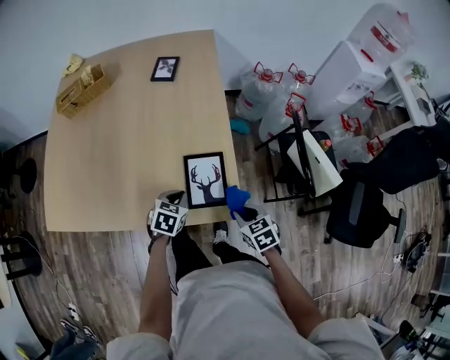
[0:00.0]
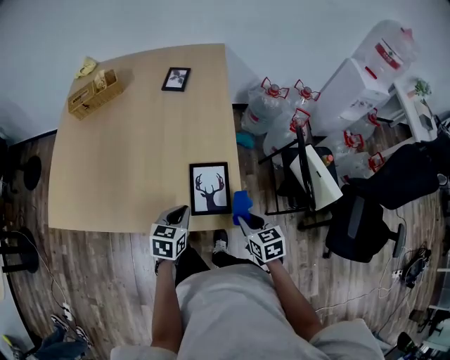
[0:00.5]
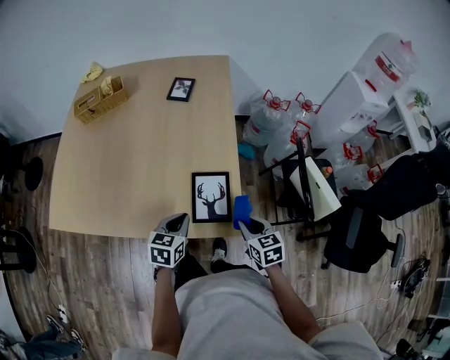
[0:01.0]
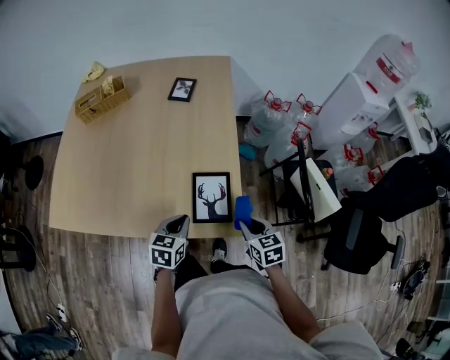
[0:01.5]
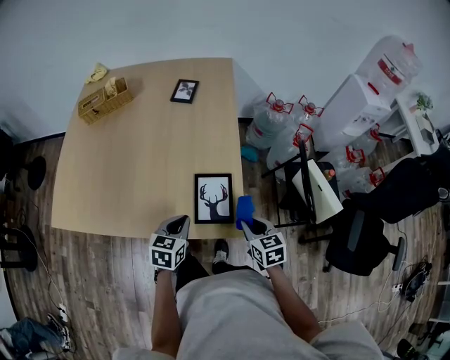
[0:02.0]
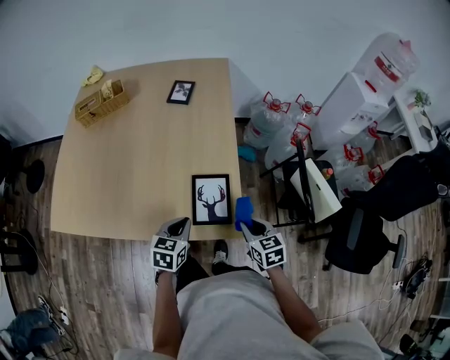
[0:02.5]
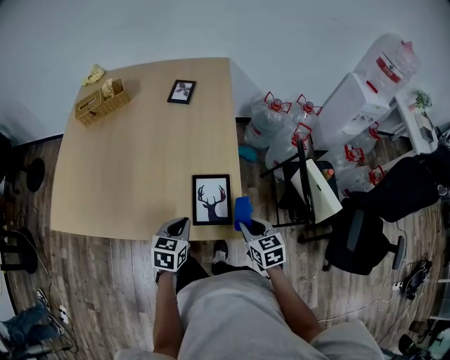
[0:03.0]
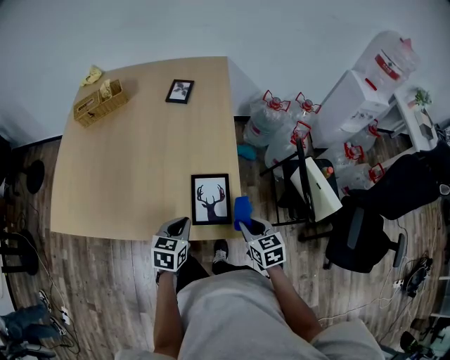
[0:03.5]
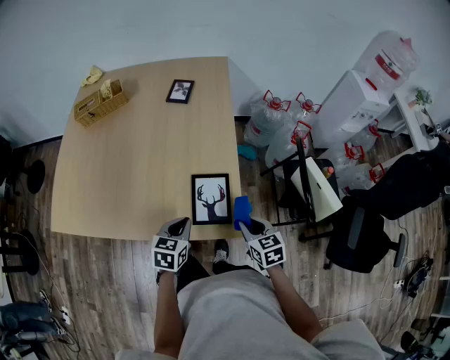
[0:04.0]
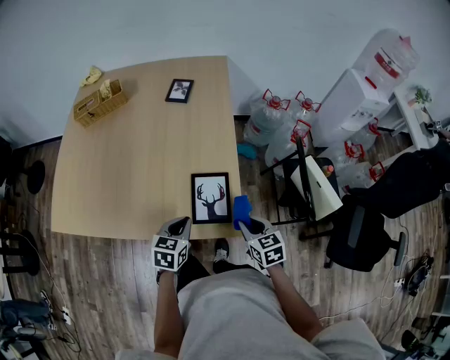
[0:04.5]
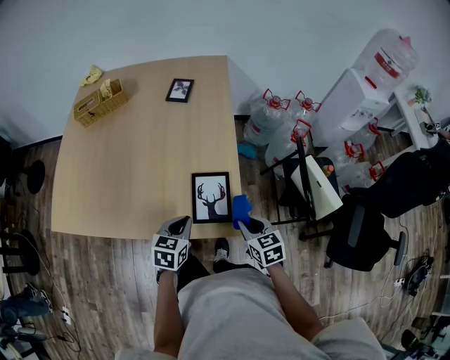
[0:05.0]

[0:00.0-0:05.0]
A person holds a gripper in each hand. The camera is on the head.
0:00.0 to 0:02.5: Both grippers move upward, some 5 cm.
0:02.5 to 0:05.0: The two grippers keep their place.

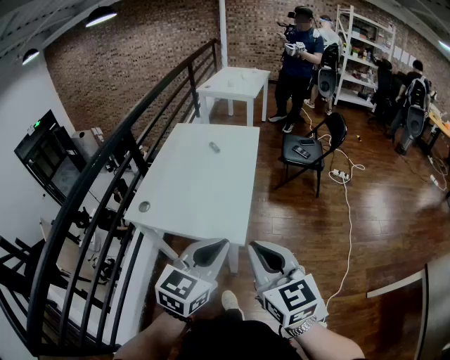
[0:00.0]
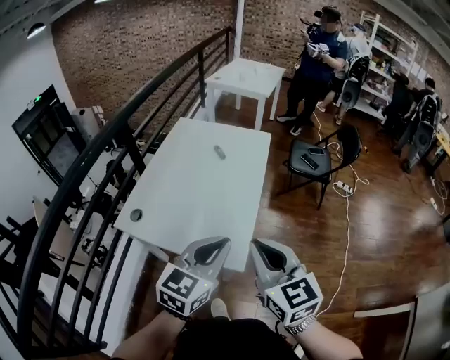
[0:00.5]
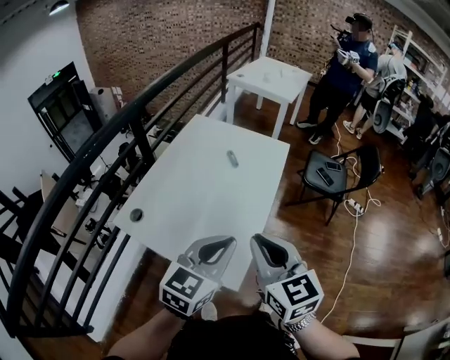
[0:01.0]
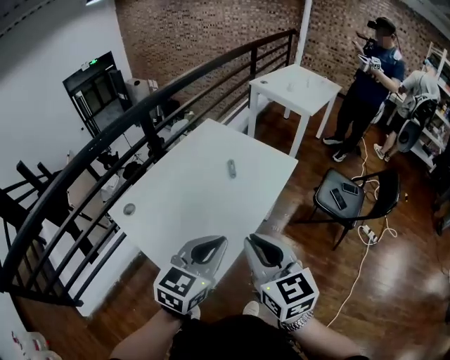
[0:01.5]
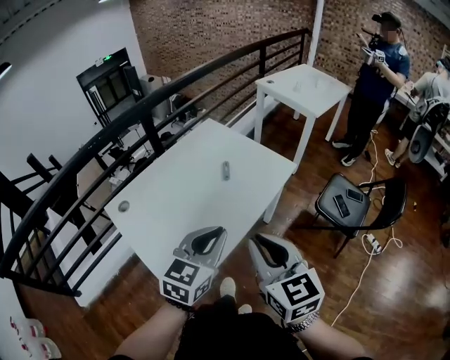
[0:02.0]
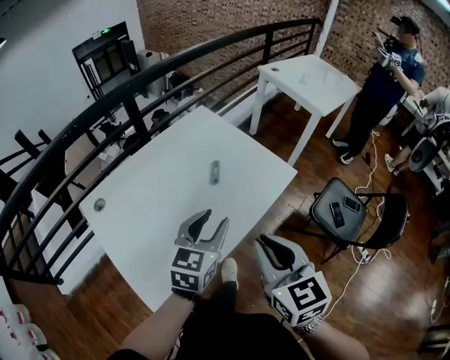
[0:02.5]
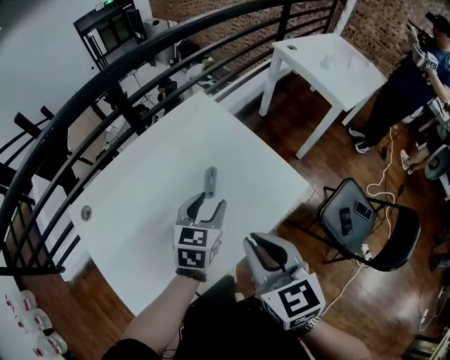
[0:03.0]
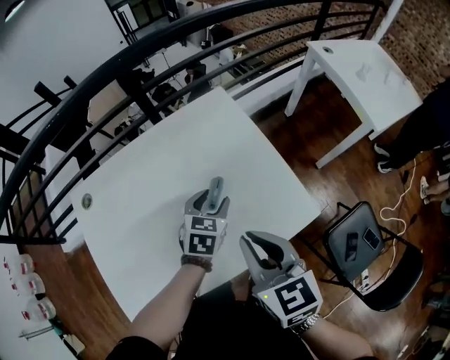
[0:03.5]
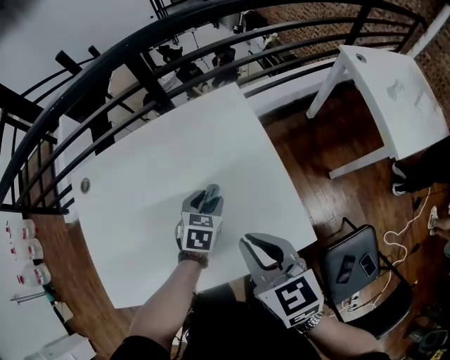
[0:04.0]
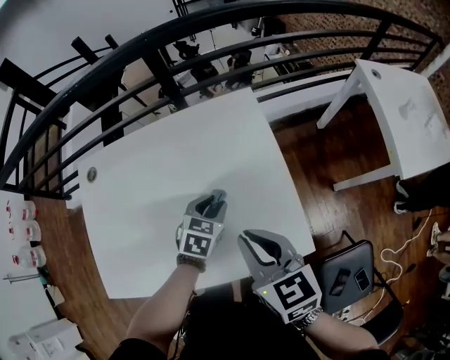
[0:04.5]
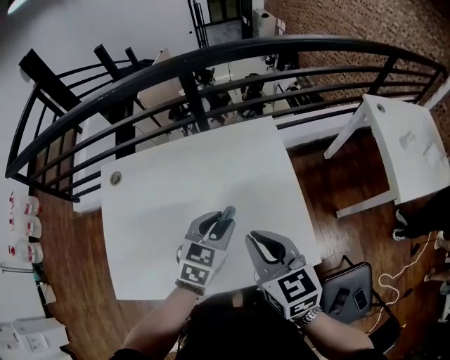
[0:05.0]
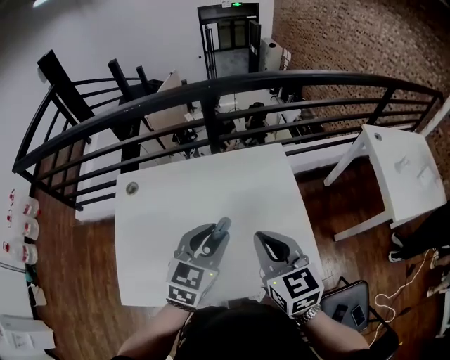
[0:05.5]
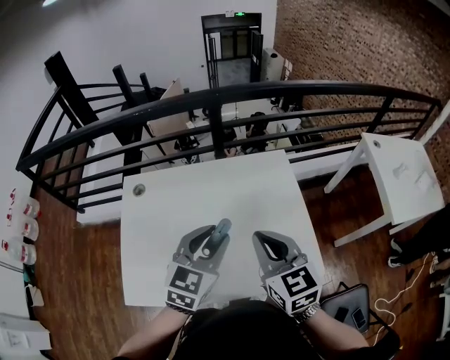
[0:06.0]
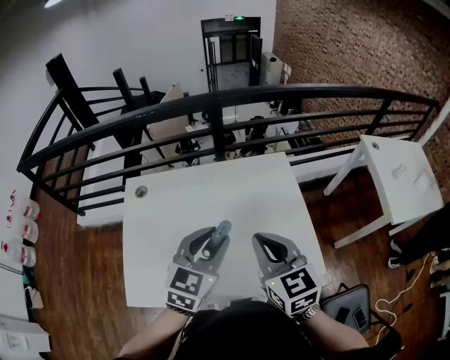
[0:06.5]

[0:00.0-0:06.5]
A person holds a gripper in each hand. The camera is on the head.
0:00.0 to 0:02.0: The right gripper shifts by approximately 40 cm, and turns by approximately 30 degrees. The left gripper shifts by some 40 cm, and turns by approximately 30 degrees.
0:02.0 to 0:04.5: The left gripper shifts by about 50 cm, tilts its fingers some 30 degrees downward, and opens. The right gripper moves some 40 cm, and rotates about 50 degrees.
0:04.5 to 0:06.5: The left gripper shifts some 25 cm upward and to the left, and changes its angle by approximately 30 degrees, while the right gripper shifts about 15 cm to the left and upward.

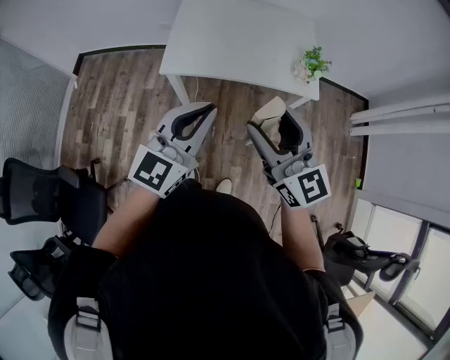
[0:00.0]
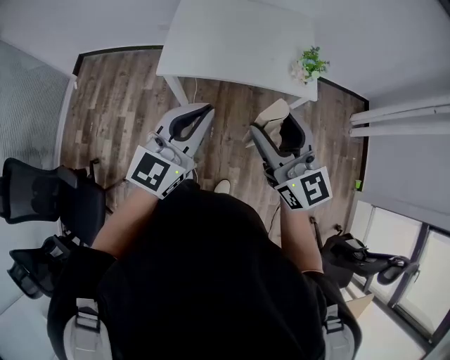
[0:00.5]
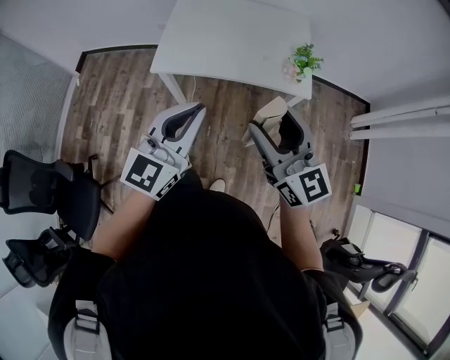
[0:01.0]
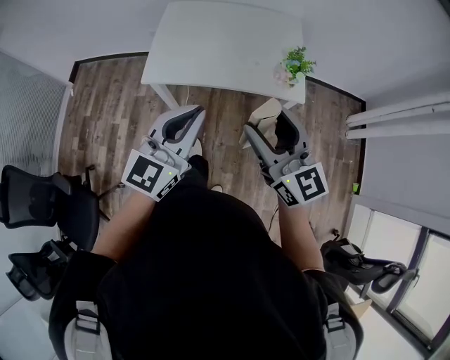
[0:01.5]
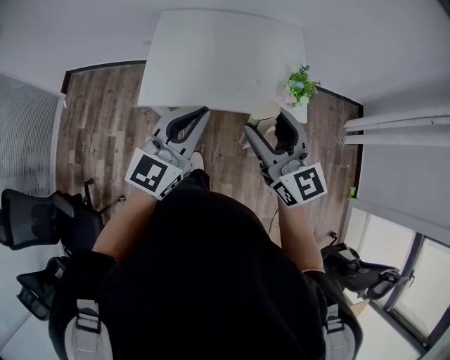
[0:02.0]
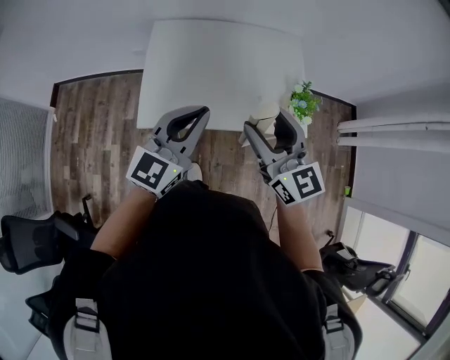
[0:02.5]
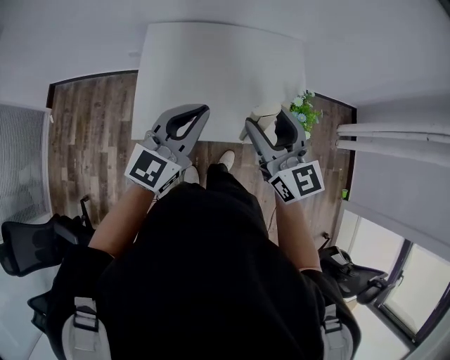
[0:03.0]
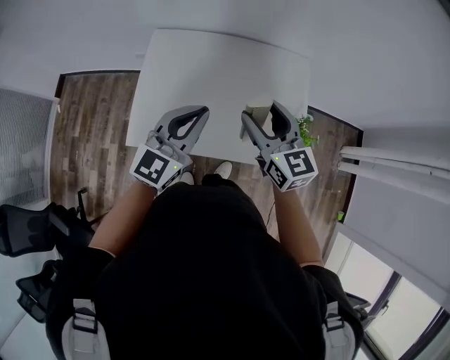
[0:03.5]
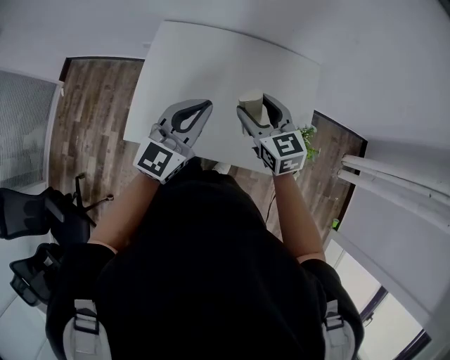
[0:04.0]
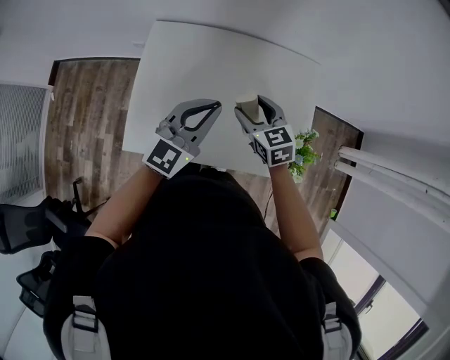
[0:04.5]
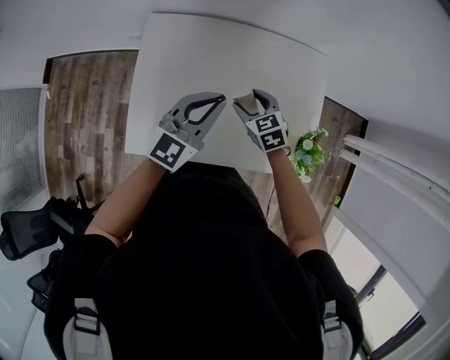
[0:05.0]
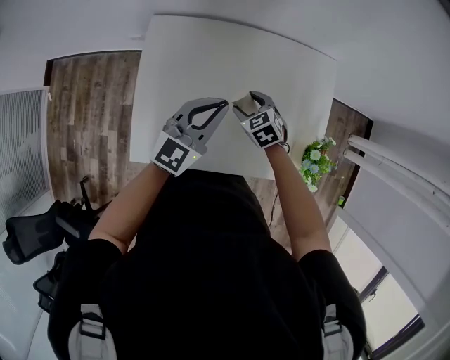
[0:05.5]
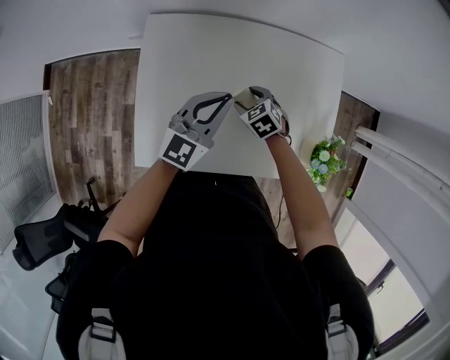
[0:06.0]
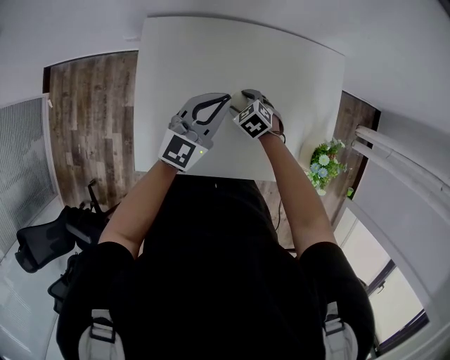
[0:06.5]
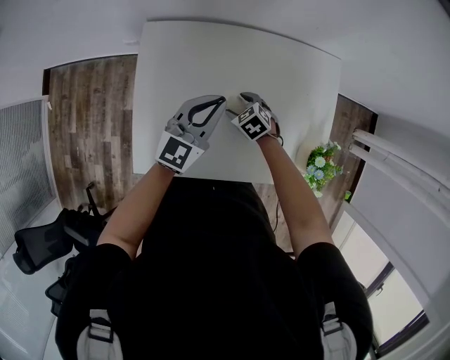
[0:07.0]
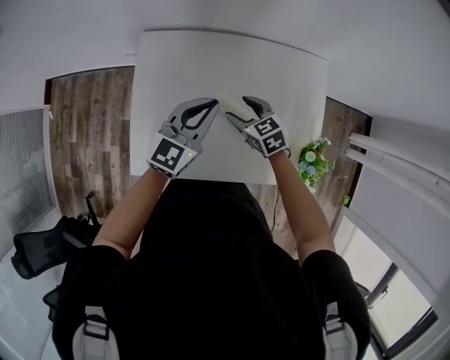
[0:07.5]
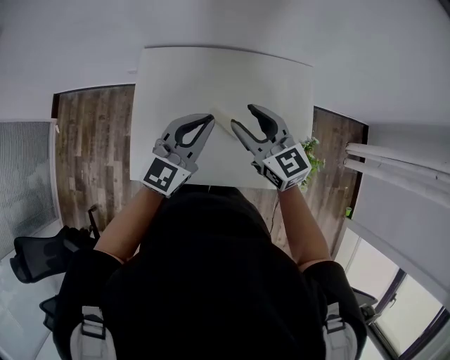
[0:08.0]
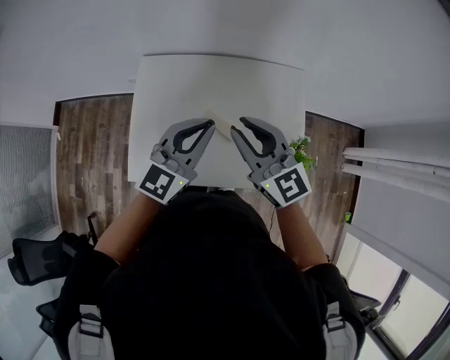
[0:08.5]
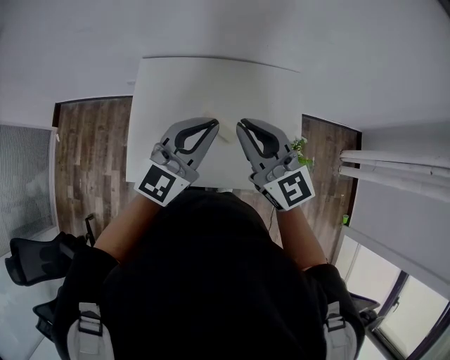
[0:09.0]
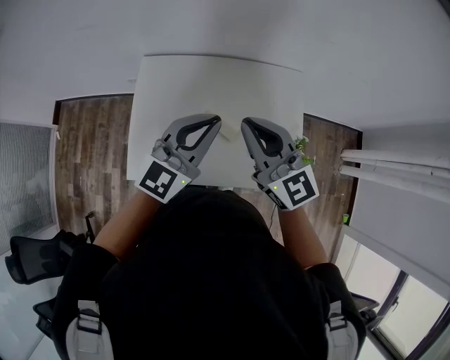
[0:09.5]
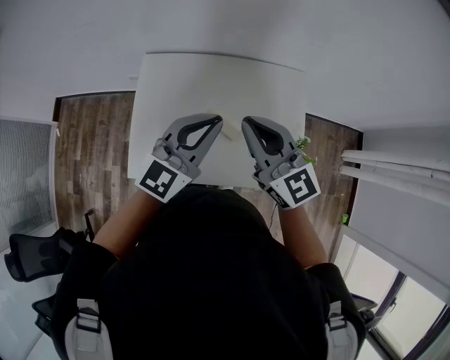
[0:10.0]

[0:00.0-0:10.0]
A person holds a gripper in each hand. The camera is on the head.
0:00.0 to 0:02.0: Both grippers travel together forward, approximately 15 cm.
0:02.0 to 0:04.0: The right gripper shifts roughly 35 cm forward and downward, and turns by about 30 degrees. Meanwhile the left gripper heads forward, covering approximately 30 cm.
0:04.0 to 0:06.0: The left gripper shifts some 20 cm forward and downward, while the right gripper moves downward and forward, some 30 cm, and tilts its fingers some 40 degrees downward.
0:06.0 to 0:08.0: The right gripper travels upward by about 30 cm, and points its fingers about 40 degrees further upward, while the left gripper is displaced upward and backward by some 15 cm.
0:08.0 to 0:10.0: The right gripper heads upward and backward, covering about 15 cm, and closes up; the left gripper moves upward, some 5 cm.

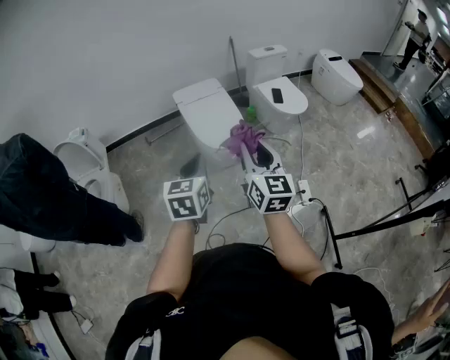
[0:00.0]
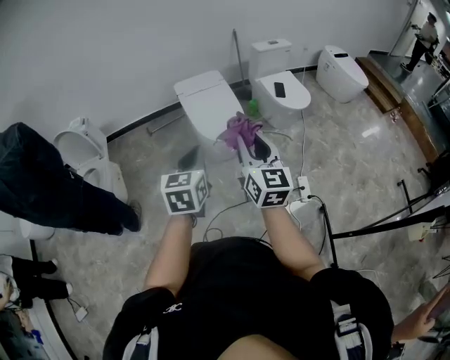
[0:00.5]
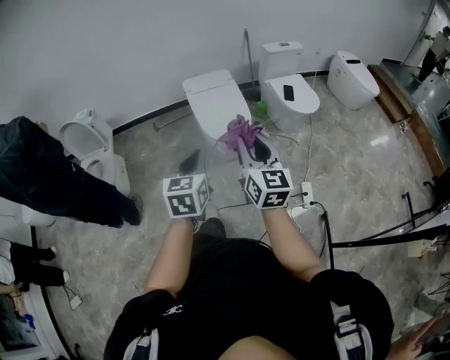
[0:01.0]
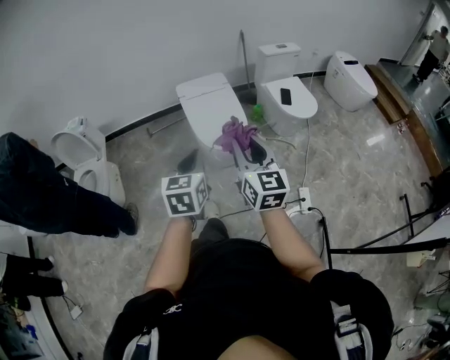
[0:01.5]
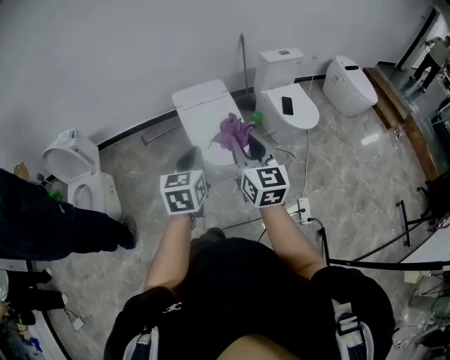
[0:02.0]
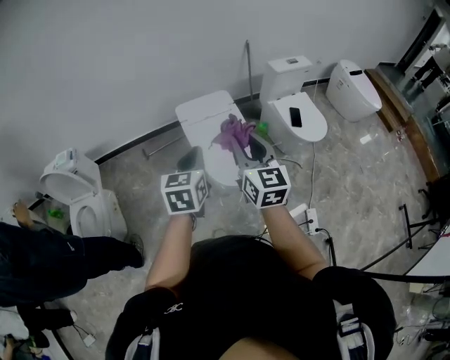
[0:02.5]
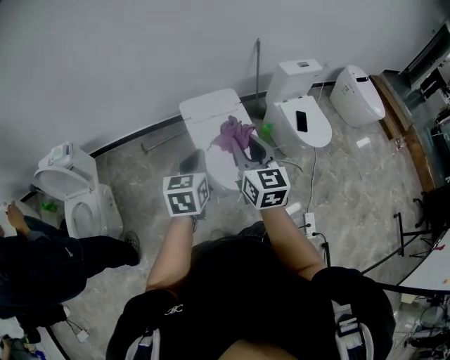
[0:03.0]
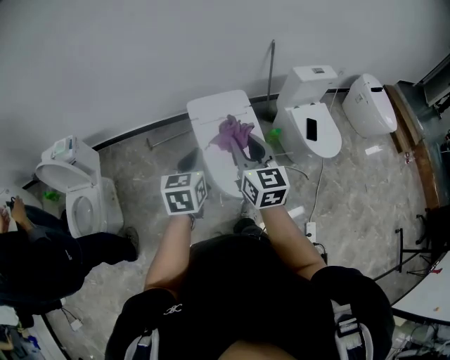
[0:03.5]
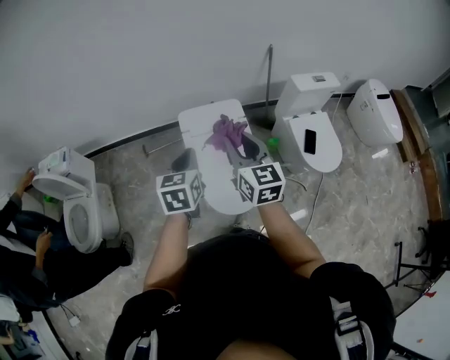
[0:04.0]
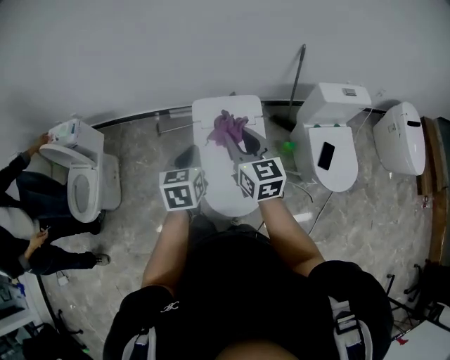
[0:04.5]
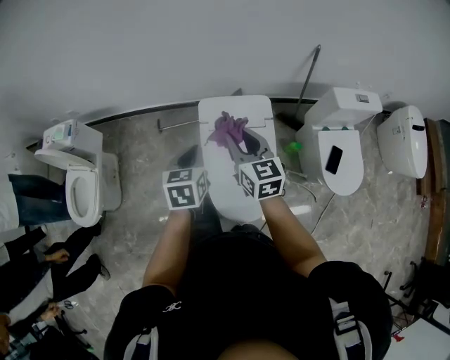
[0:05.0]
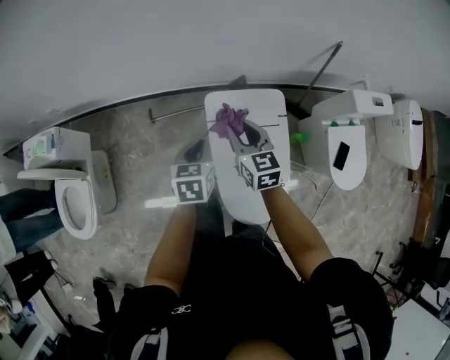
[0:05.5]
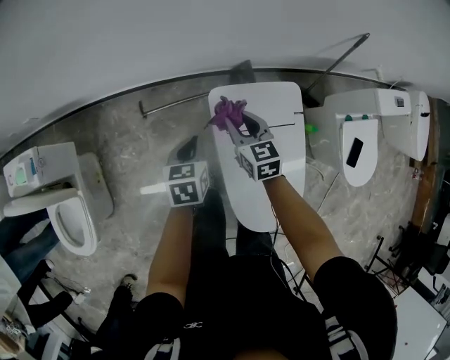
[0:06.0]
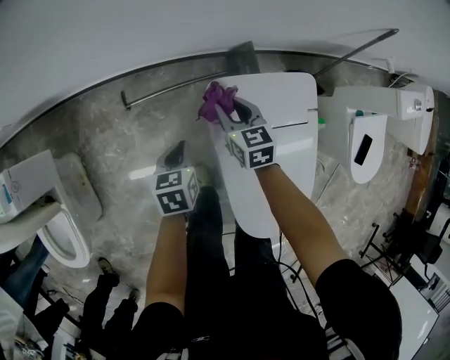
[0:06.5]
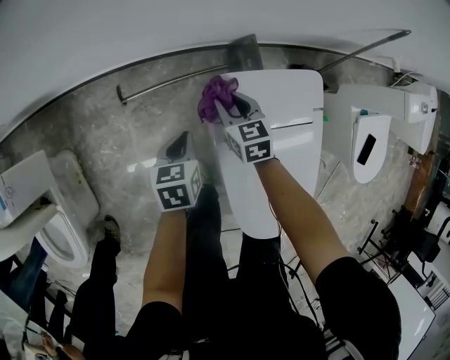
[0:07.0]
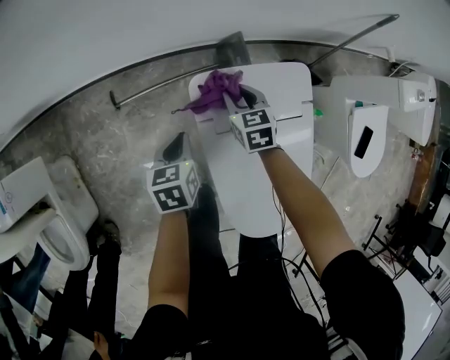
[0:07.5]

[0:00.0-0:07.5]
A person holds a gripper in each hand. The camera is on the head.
0:00.0 to 0:02.0: The two grippers go about 20 cm forward.
0:02.0 to 0:04.0: The grippers both shift forward by about 35 cm.
0:04.0 to 0:05.5: The left gripper shifts some 30 cm forward and downward; the right gripper shifts roughly 35 cm forward, downward and to the left.
0:05.5 to 0:07.5: The two grippers go roughly 35 cm downward and forward. The right gripper changes its angle by some 20 degrees.
